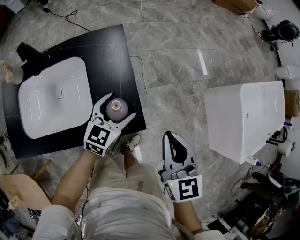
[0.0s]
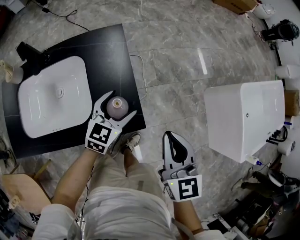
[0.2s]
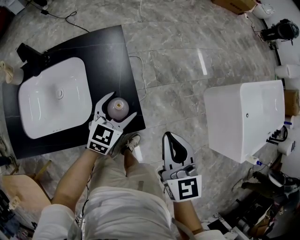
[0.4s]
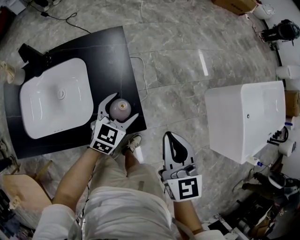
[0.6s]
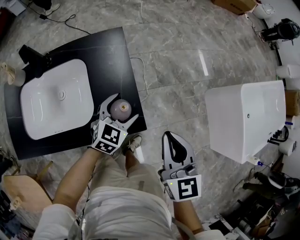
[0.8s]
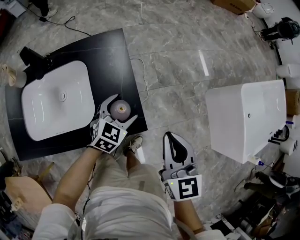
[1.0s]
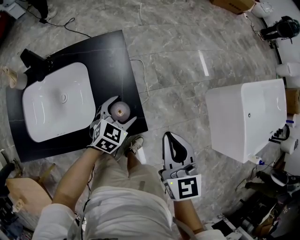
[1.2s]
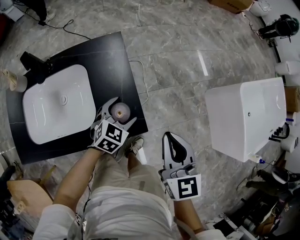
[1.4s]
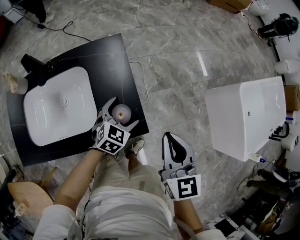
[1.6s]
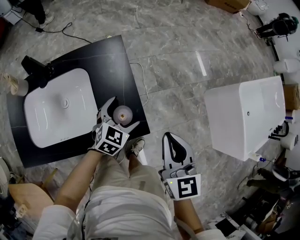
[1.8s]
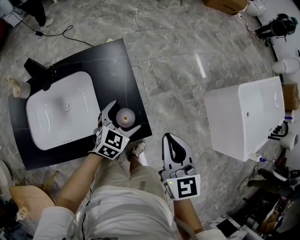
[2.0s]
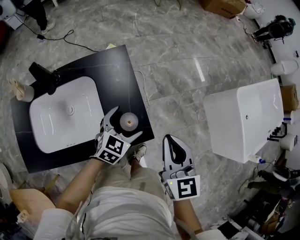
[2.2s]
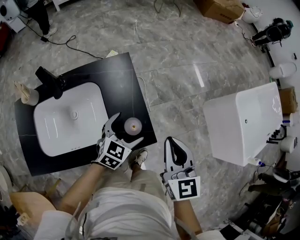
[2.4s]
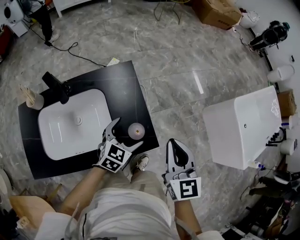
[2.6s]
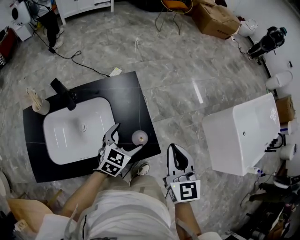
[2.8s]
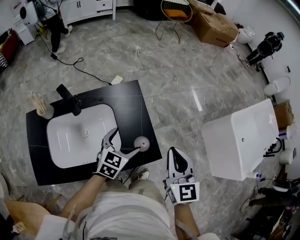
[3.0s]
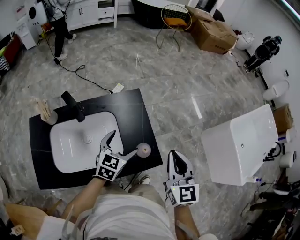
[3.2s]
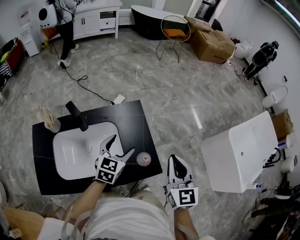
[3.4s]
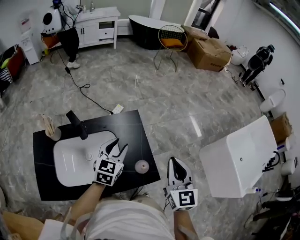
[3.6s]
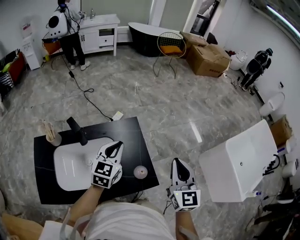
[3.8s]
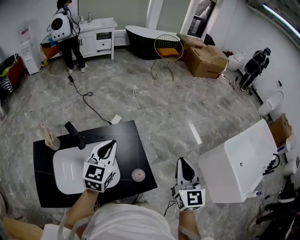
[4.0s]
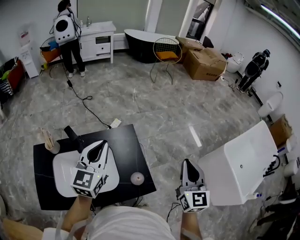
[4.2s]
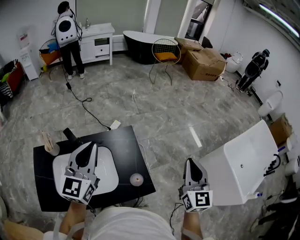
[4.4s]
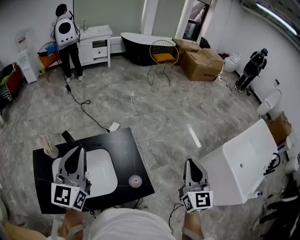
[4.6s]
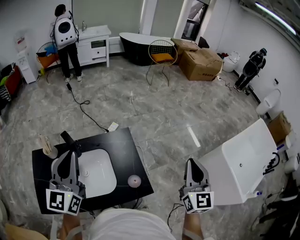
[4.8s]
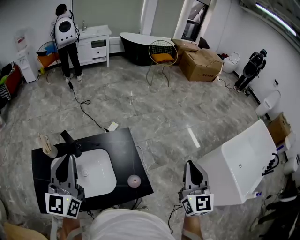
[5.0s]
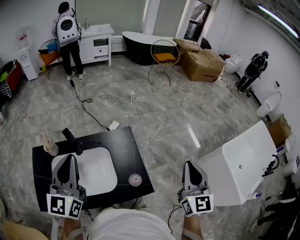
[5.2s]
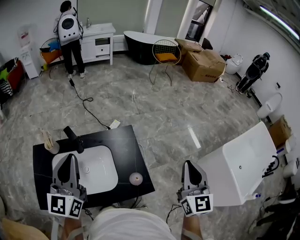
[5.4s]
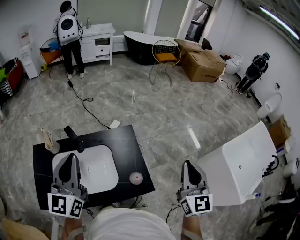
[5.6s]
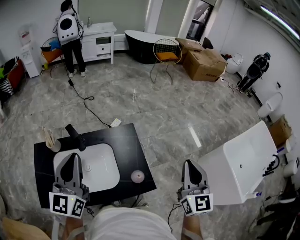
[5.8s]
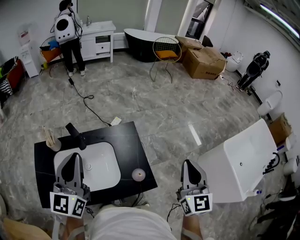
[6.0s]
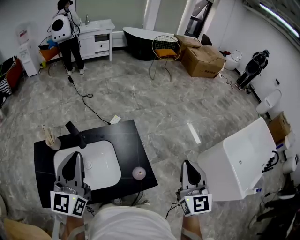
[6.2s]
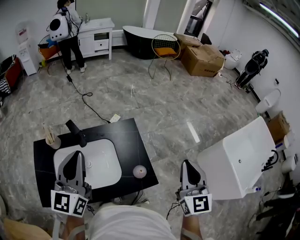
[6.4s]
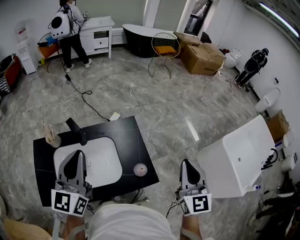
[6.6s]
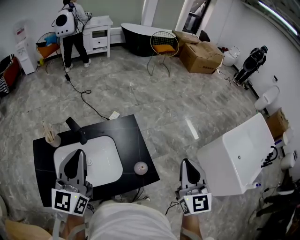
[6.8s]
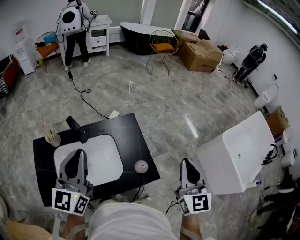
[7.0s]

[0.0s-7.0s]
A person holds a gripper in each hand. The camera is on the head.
0.0s to 1.4s: The left gripper changes its angle by about 20 degrees.
1.4s to 2.8s: The two grippers go about 10 cm upward and to the left.
2.8s to 4.2s: The left gripper is displaced upward and to the left by roughly 30 cm, rotates about 30 degrees, and closes up; the right gripper heads upward, to the right and forward, covering roughly 15 cm.
4.2s to 5.6s: The left gripper travels backward, to the left and upward by roughly 15 cm.
5.6s to 7.0s: The right gripper ends up about 5 cm from where it was.

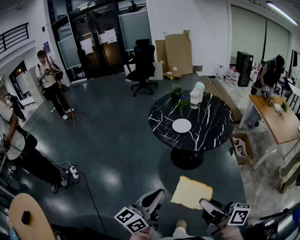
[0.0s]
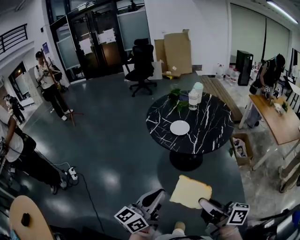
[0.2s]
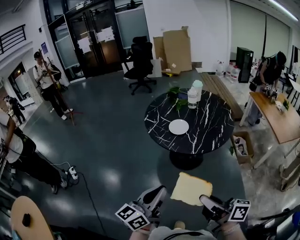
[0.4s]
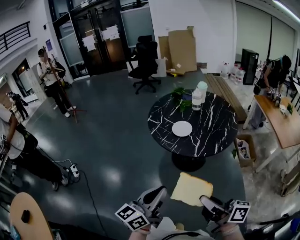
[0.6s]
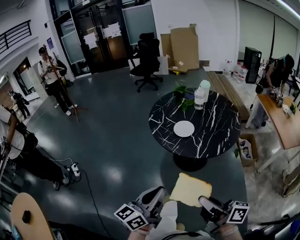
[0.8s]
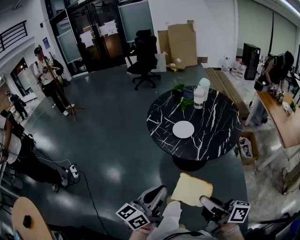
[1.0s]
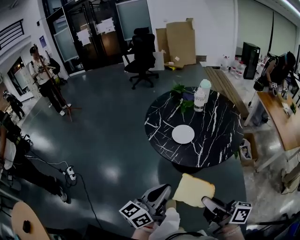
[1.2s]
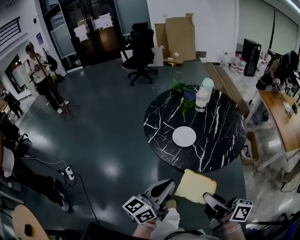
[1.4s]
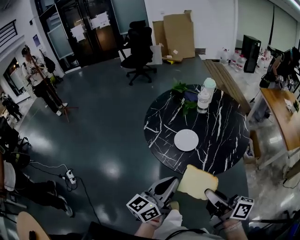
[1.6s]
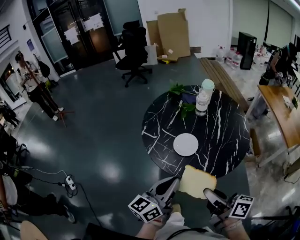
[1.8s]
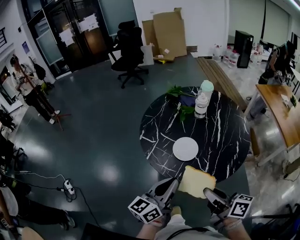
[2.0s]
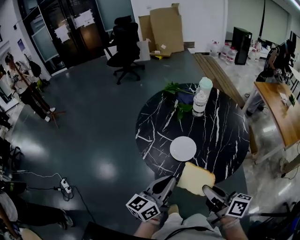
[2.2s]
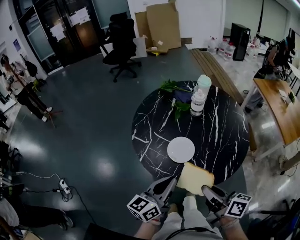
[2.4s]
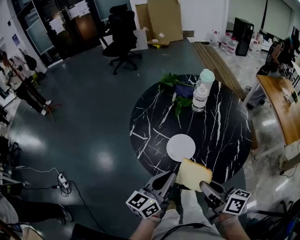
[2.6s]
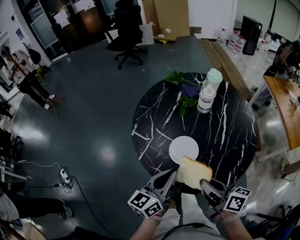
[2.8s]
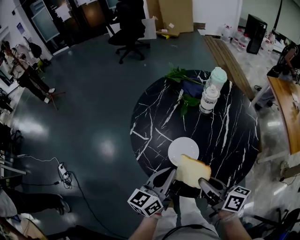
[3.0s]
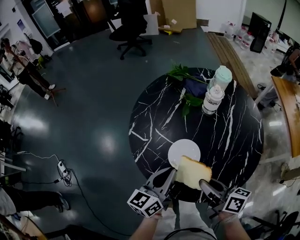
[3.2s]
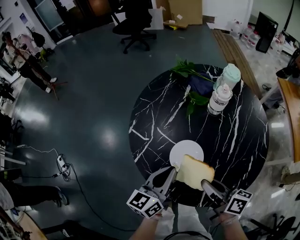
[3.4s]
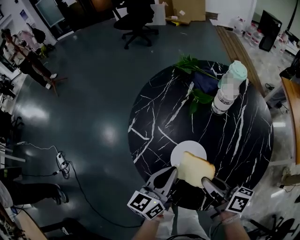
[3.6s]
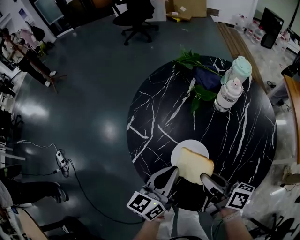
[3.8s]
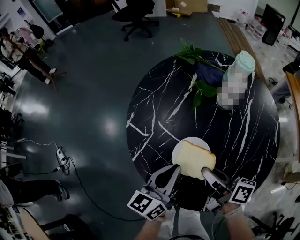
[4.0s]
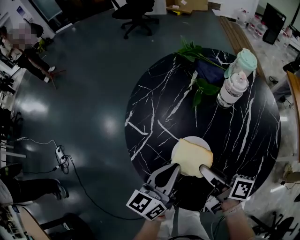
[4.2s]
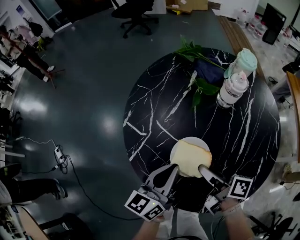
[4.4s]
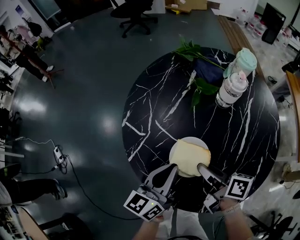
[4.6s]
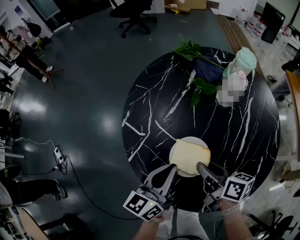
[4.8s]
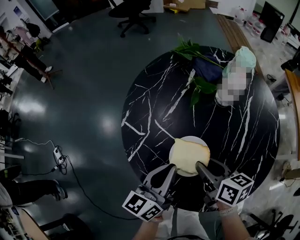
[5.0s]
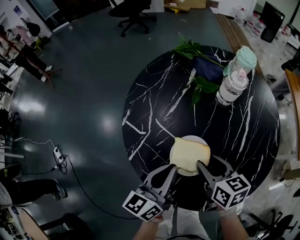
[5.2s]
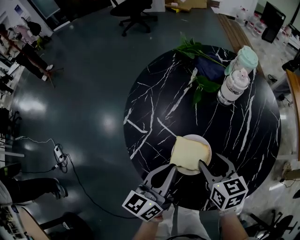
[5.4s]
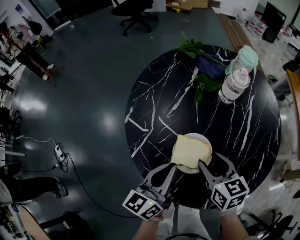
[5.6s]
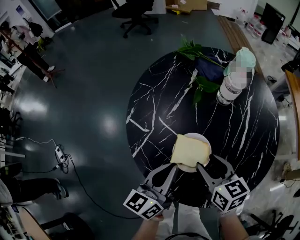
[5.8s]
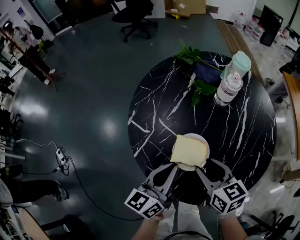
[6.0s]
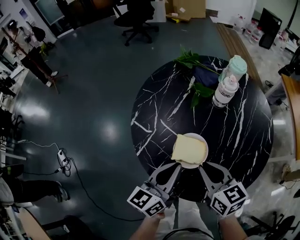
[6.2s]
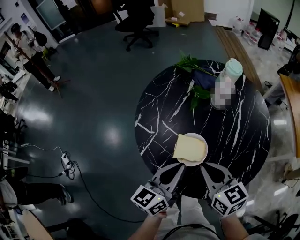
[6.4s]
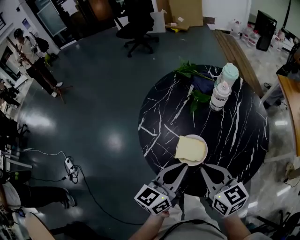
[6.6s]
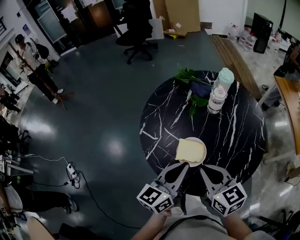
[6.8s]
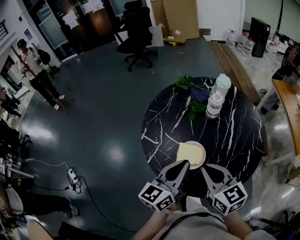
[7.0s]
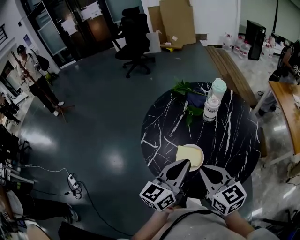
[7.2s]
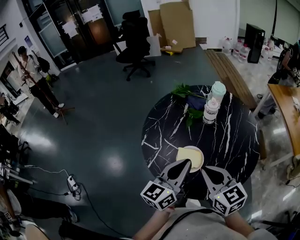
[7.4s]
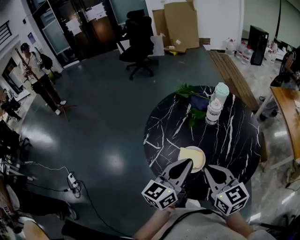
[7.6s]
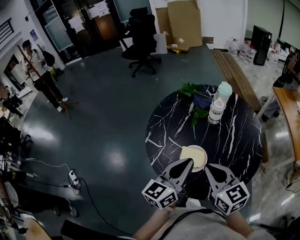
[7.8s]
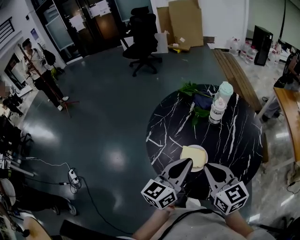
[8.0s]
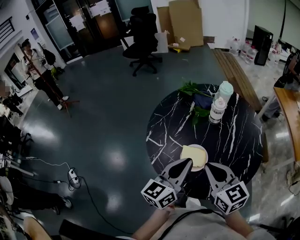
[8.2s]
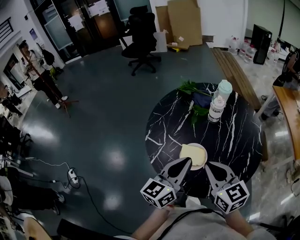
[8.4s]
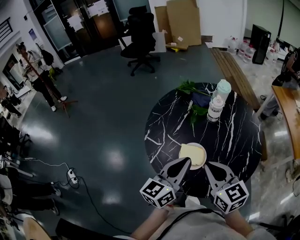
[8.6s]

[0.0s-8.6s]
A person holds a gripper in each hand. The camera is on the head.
0.0s to 1.4s: The grippers both shift forward by about 25 cm.
1.4s to 2.8s: Both grippers move forward, approximately 25 cm.
2.8s to 4.4s: The left gripper travels downward and forward by roughly 15 cm; the right gripper moves forward and downward, roughly 20 cm, and swivels some 20 degrees.
4.4s to 5.8s: The right gripper twists roughly 50 degrees counterclockwise, seen from behind, and opens its fingers.
5.8s to 7.2s: The right gripper goes about 20 cm upward and backward, and closes its fingers. Meanwhile the left gripper moves upward, approximately 15 cm.
7.2s to 8.6s: Both grippers stay about where they are.

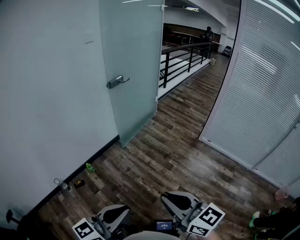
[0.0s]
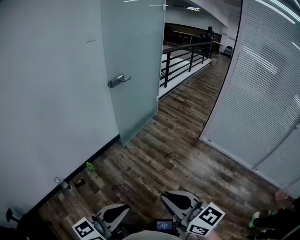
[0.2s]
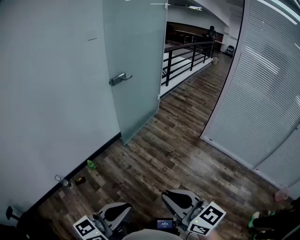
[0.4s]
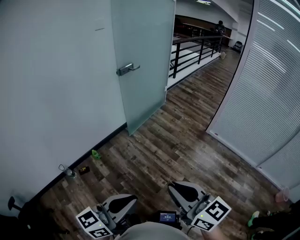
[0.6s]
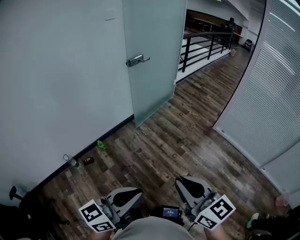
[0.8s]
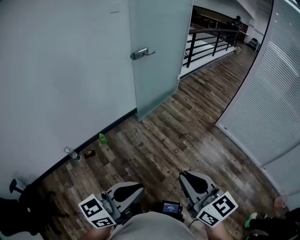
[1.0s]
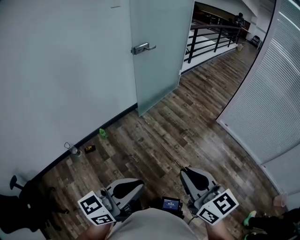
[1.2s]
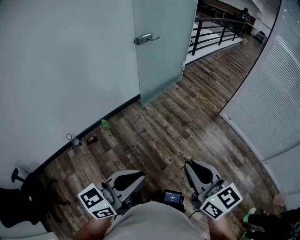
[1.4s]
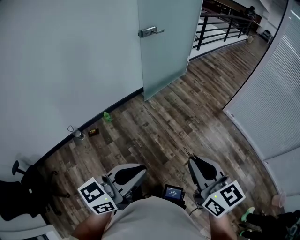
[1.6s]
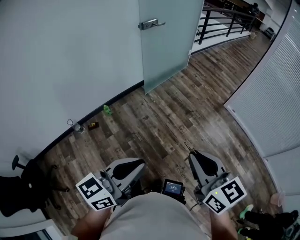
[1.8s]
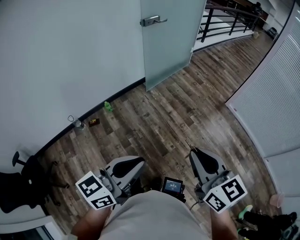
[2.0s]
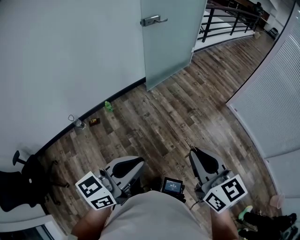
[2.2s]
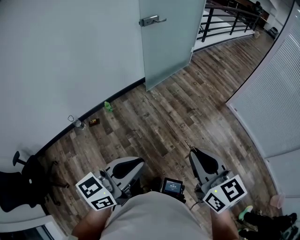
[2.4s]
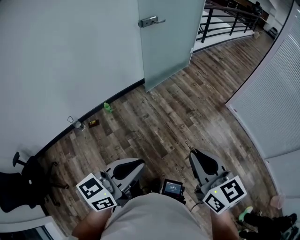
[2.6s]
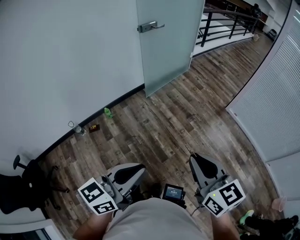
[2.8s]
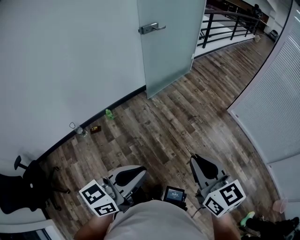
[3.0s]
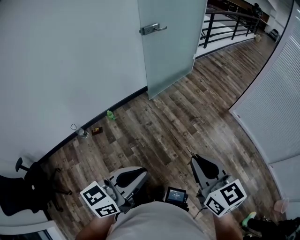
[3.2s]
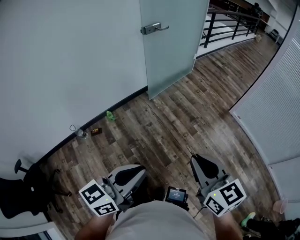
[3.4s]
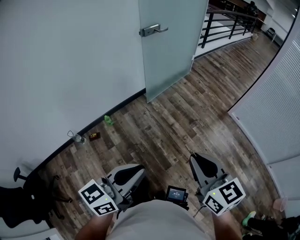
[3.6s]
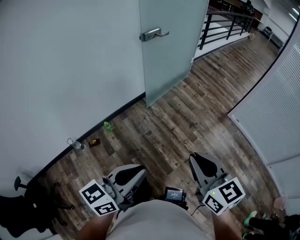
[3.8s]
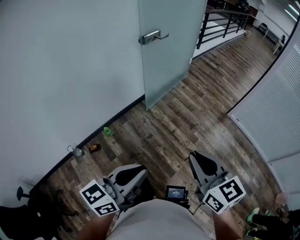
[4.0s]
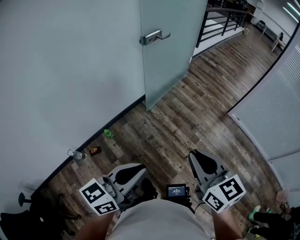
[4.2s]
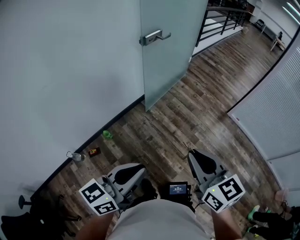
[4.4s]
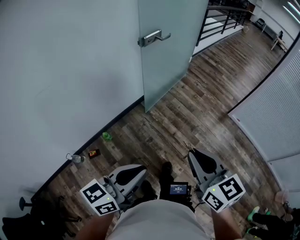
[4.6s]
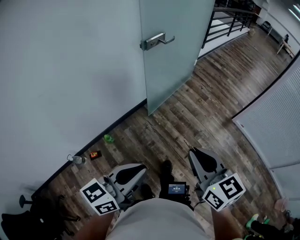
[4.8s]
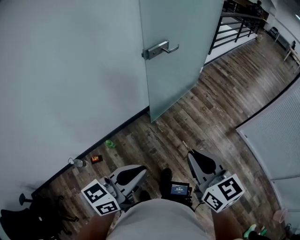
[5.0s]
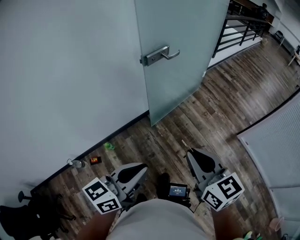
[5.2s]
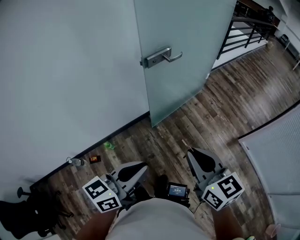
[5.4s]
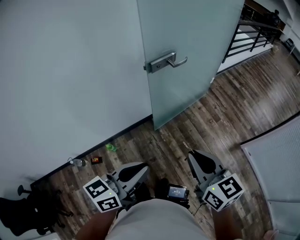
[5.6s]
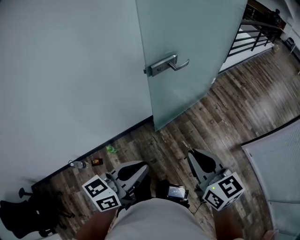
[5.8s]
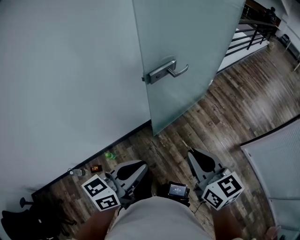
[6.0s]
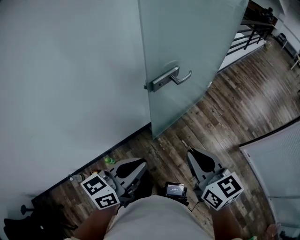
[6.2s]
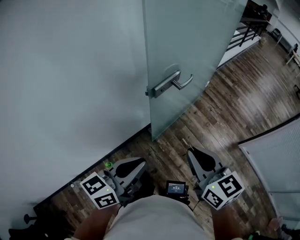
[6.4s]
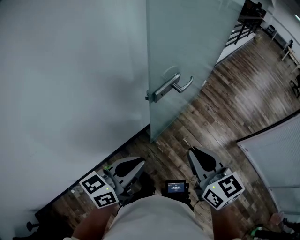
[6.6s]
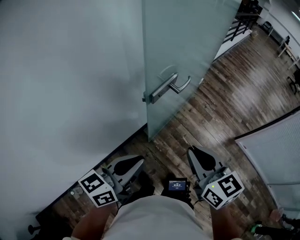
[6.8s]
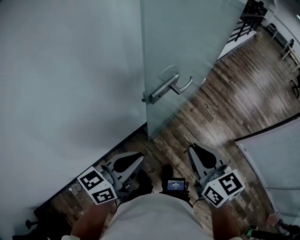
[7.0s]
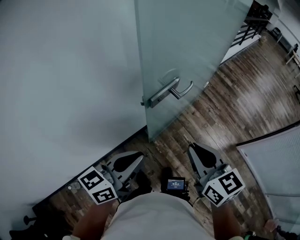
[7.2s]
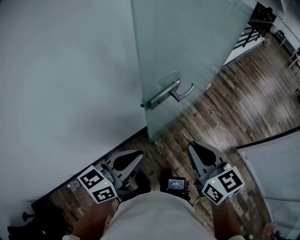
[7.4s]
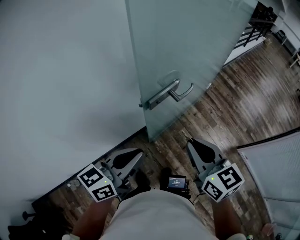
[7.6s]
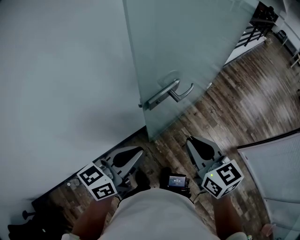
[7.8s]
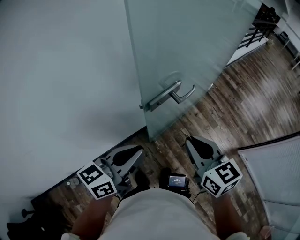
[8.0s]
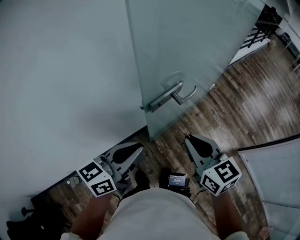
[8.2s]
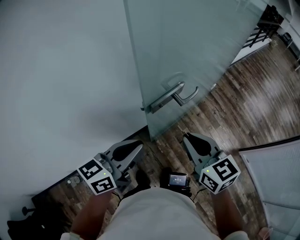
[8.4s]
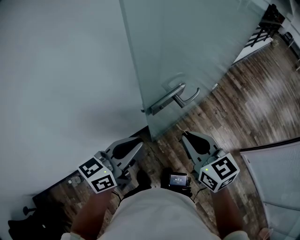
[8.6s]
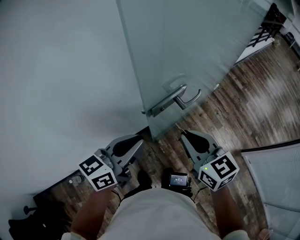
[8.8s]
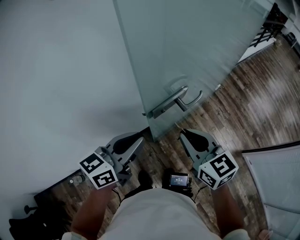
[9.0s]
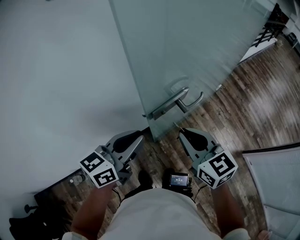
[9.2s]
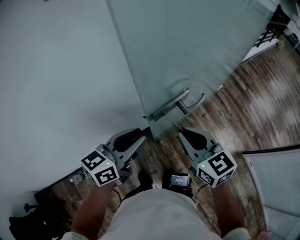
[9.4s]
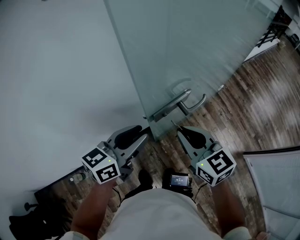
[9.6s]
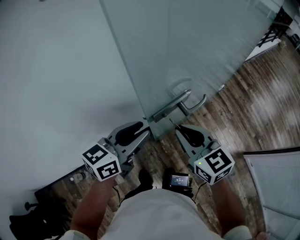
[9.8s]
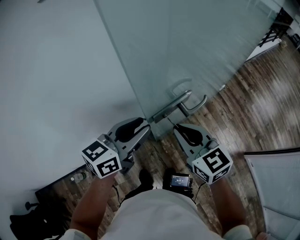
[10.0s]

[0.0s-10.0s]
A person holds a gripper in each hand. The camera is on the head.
0.0s to 1.4s: The grippers move only a little.
1.4s to 2.8s: The right gripper moves about 5 cm.
2.8s to 4.2s: The two grippers go about 25 cm forward and to the left.
4.2s to 5.8s: Both grippers move forward, about 30 cm.
5.8s to 7.2s: The left gripper shifts approximately 20 cm forward and to the left. Meanwhile the right gripper shifts some 15 cm forward.
7.2s to 8.6s: The two grippers go roughly 10 cm forward.
8.6s to 10.0s: Both grippers move forward, some 5 cm. The left gripper opens its fingers.
